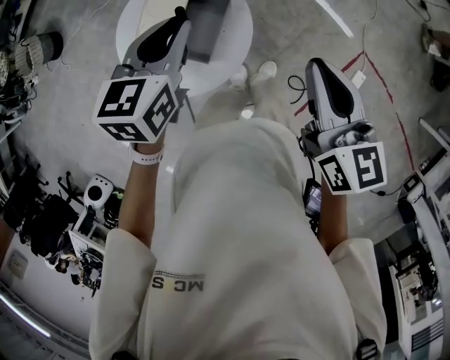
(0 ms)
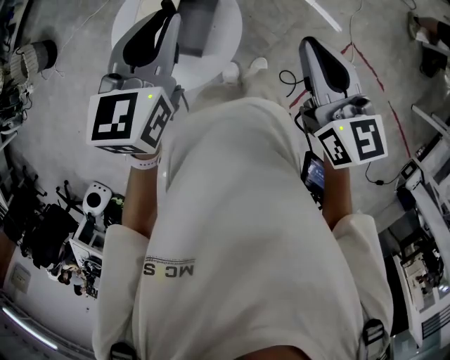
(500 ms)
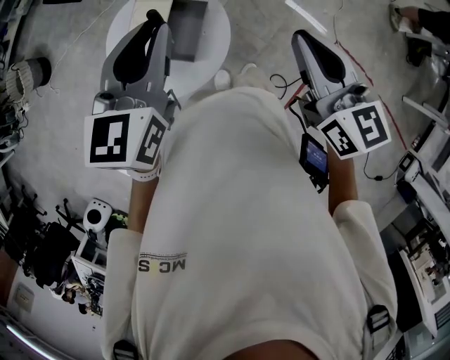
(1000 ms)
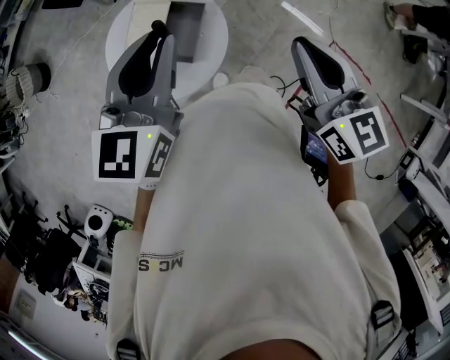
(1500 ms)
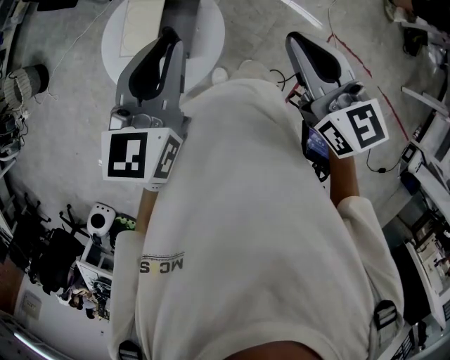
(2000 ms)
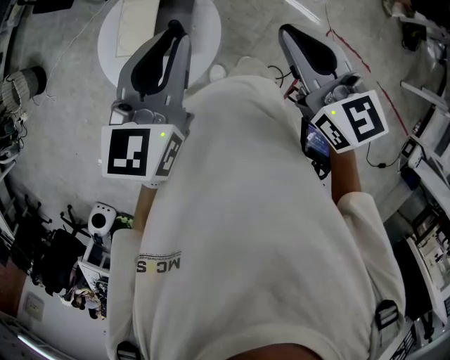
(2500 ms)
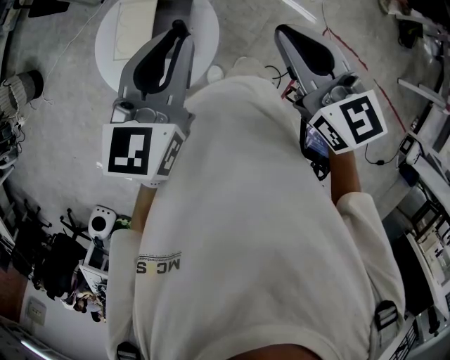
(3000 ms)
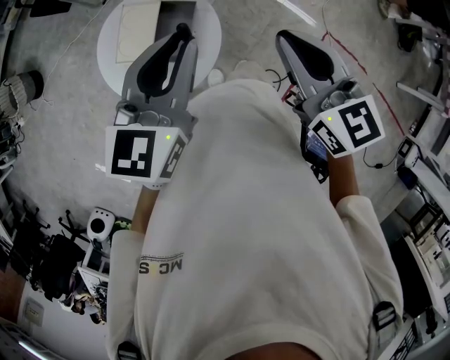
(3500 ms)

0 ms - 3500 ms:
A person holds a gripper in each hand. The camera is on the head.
0 ms - 2000 ms: The right gripper travels upward and backward by about 10 cm. Meanwhile the left gripper heads upward and backward, covering some 15 cm.
2000 ms - 3500 ms: The grippers stay close to where they were, moving slightly.

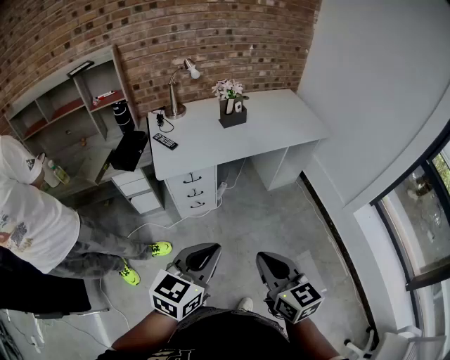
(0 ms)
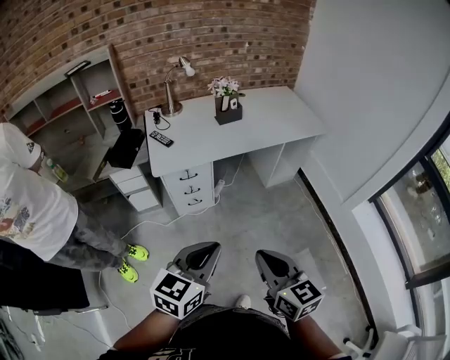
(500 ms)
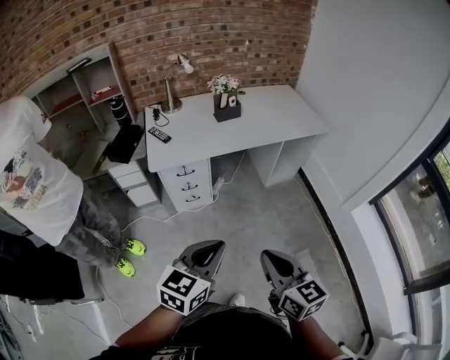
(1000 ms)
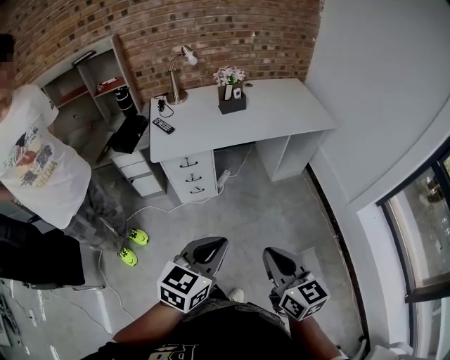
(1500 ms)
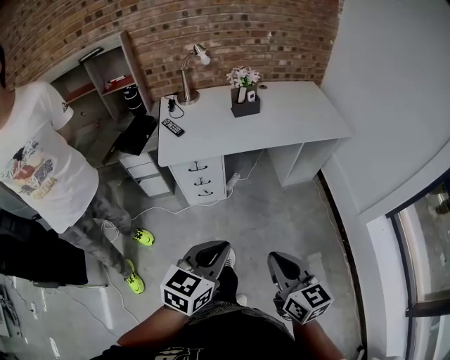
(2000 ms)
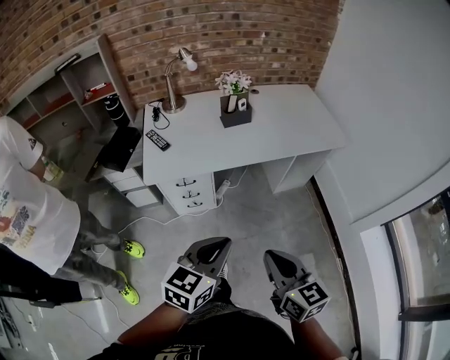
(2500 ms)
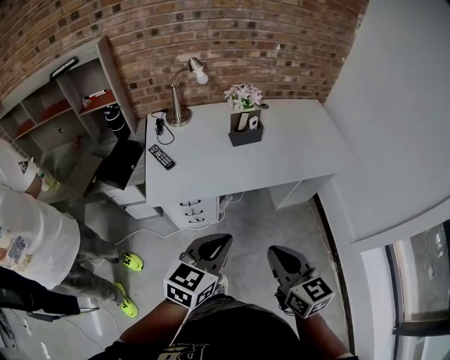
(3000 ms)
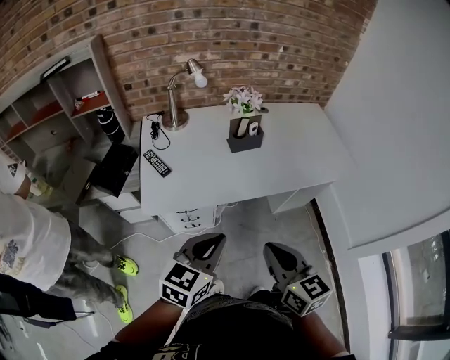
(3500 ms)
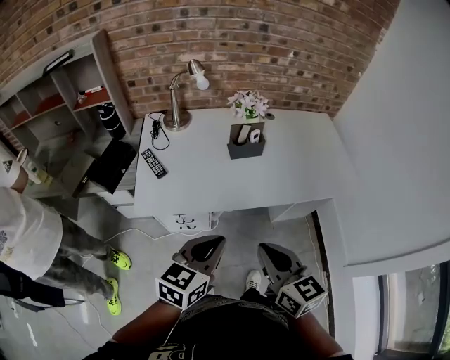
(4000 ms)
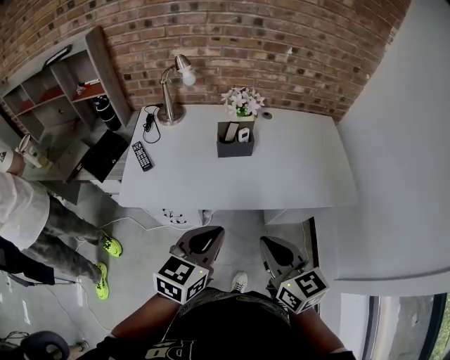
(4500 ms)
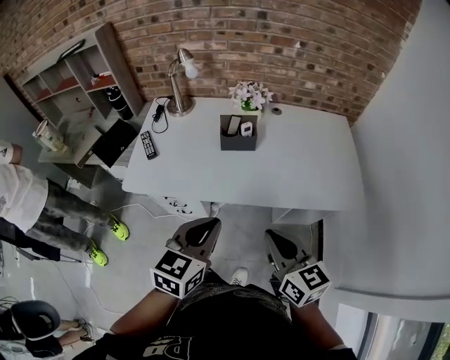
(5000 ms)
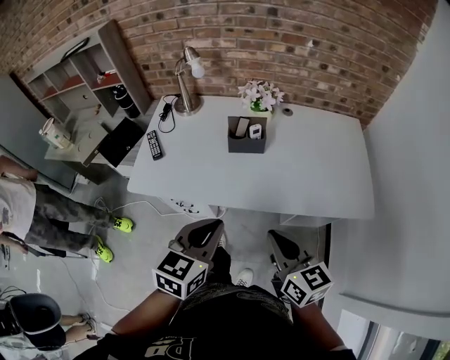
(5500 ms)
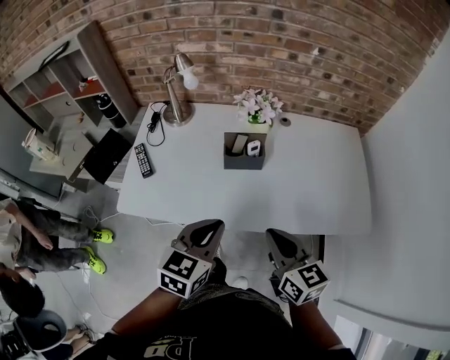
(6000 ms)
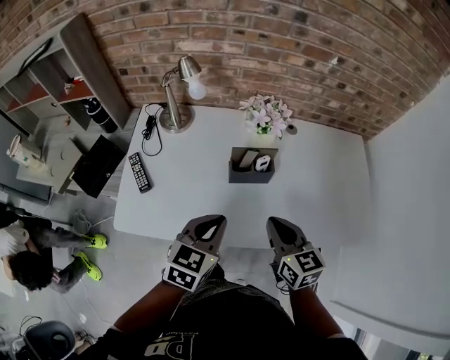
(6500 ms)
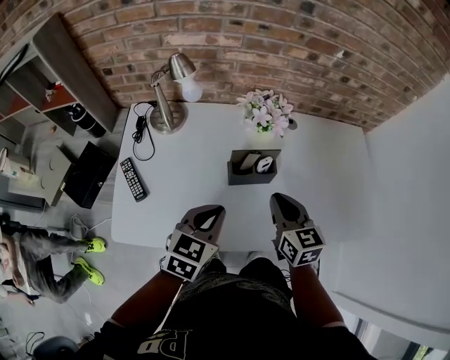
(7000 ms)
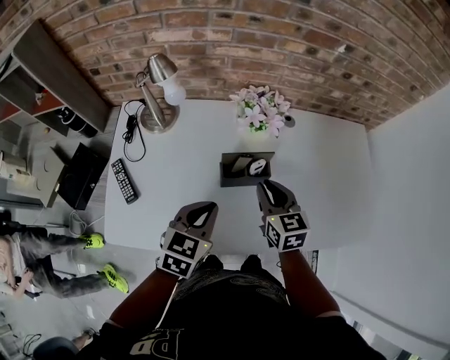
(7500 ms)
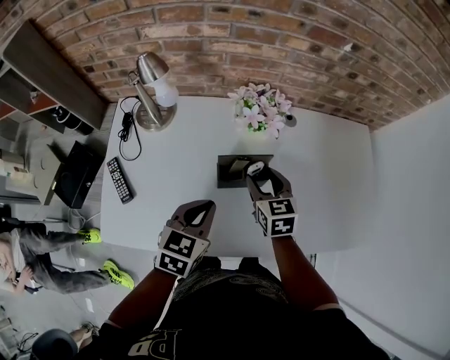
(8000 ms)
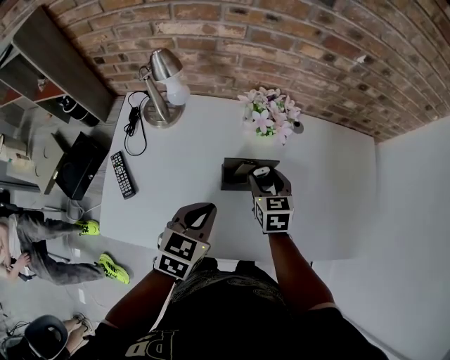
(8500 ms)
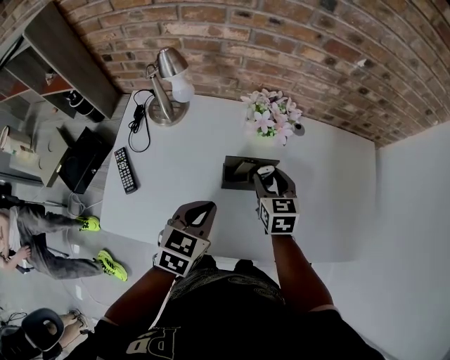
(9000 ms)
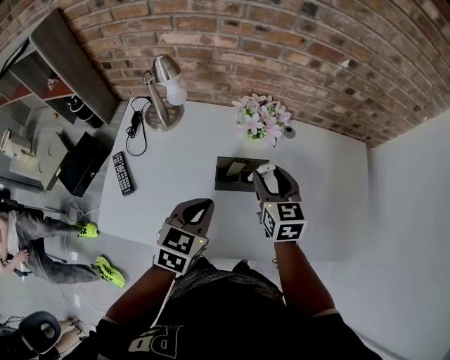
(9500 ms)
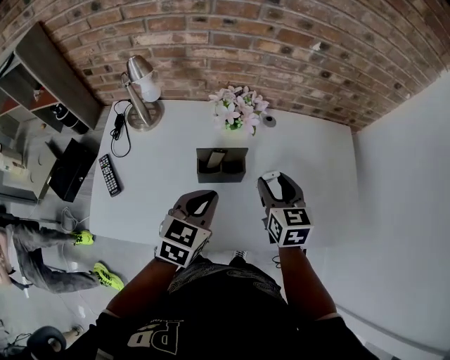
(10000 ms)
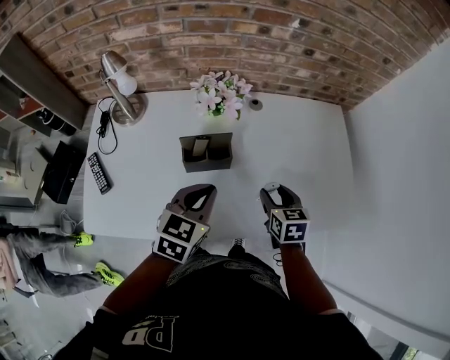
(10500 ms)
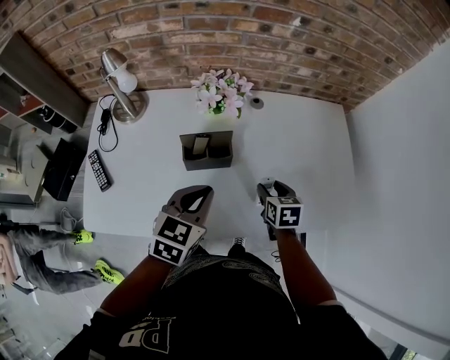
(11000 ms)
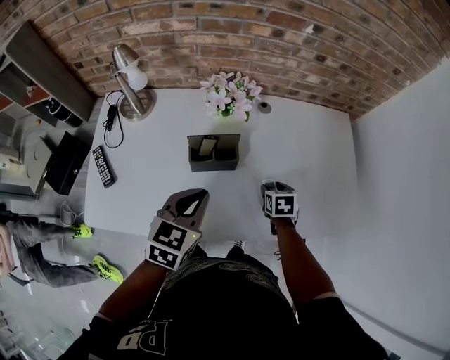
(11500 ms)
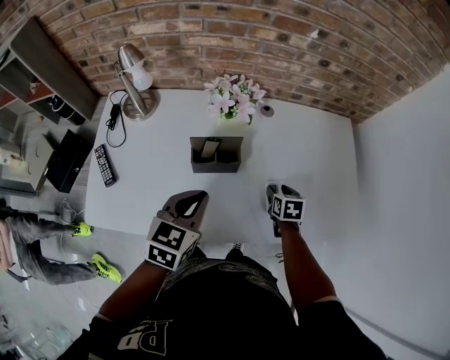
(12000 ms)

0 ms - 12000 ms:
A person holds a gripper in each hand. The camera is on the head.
0 ms - 2000 ms: The grippers both shift to the right by roughly 10 cm.
2000 ms - 4000 ms: The grippers both shift forward by about 35 cm.
4000 ms - 6000 ms: The grippers both shift forward and to the right by some 20 cm.
6000 ms - 8000 ms: The left gripper is displaced forward and downward by roughly 20 cm; the right gripper is displaced forward and downward by some 30 cm, turns by about 20 degrees, and opens.
8000 ms - 10000 ms: The right gripper travels to the right and upward by about 10 cm. The left gripper shifts about 5 cm to the right.
10000 ms - 12000 ms: The right gripper heads downward and to the right, covering approximately 20 cm, and changes its angle by approximately 30 degrees.

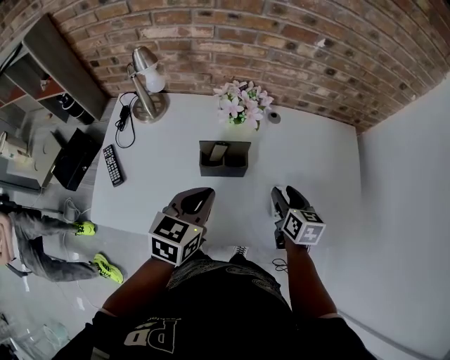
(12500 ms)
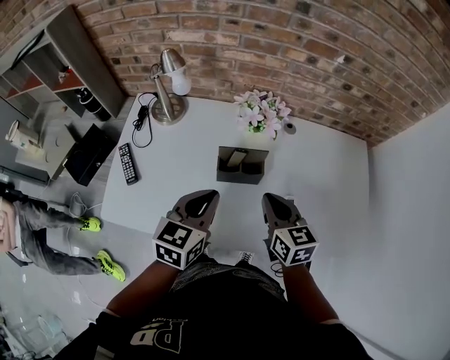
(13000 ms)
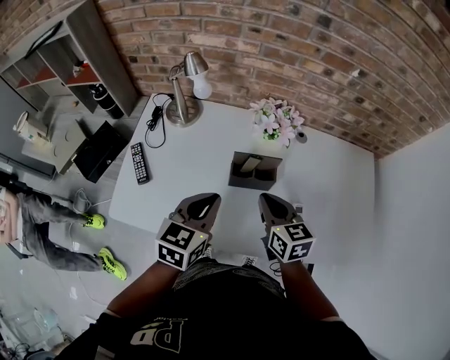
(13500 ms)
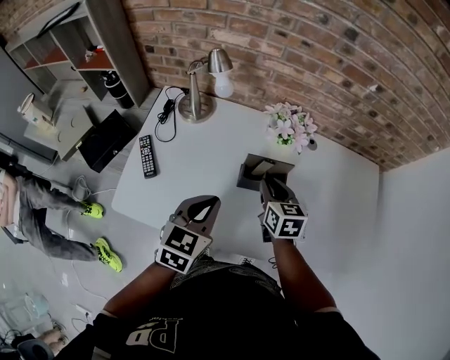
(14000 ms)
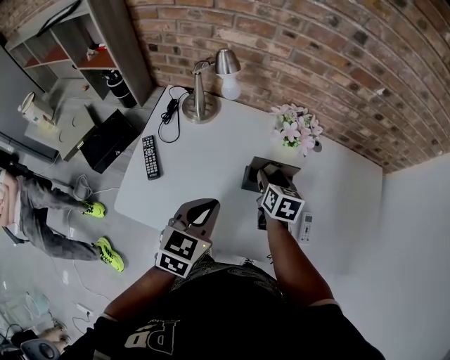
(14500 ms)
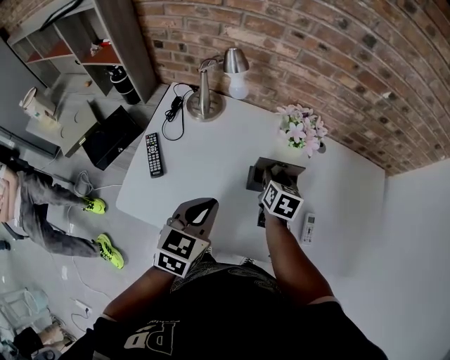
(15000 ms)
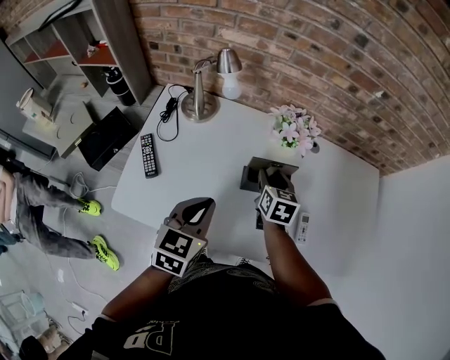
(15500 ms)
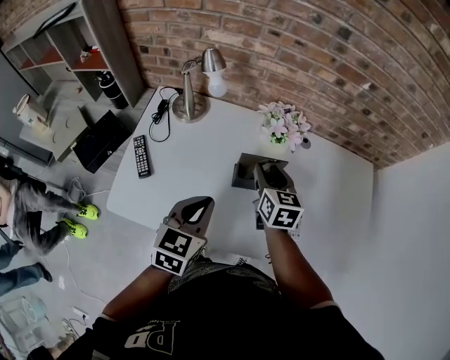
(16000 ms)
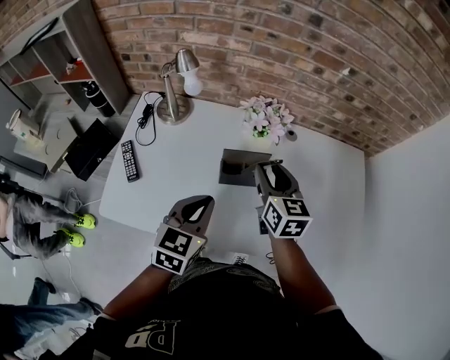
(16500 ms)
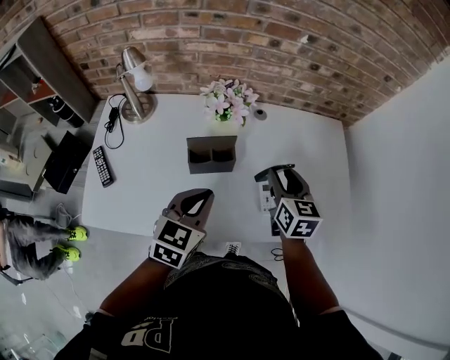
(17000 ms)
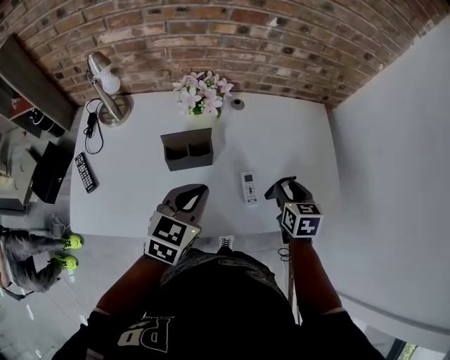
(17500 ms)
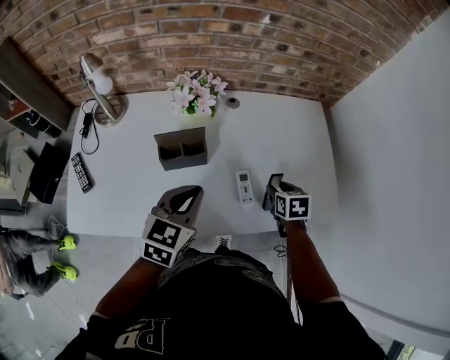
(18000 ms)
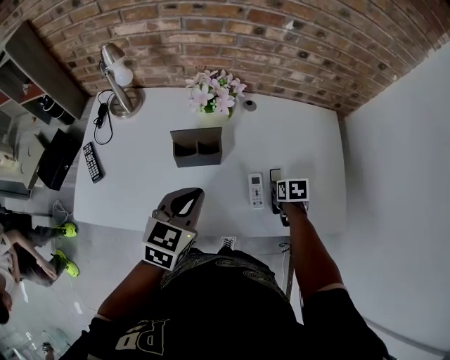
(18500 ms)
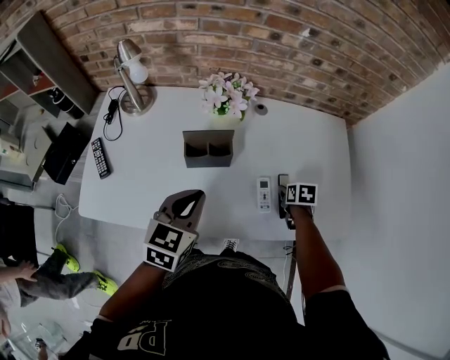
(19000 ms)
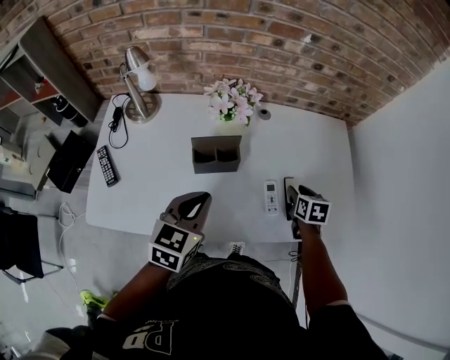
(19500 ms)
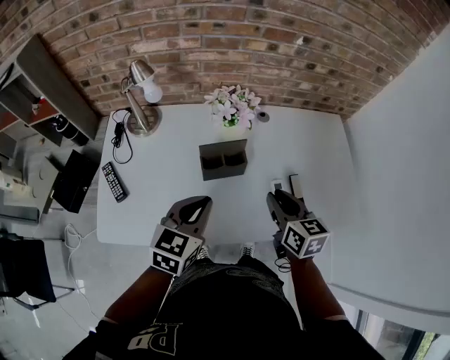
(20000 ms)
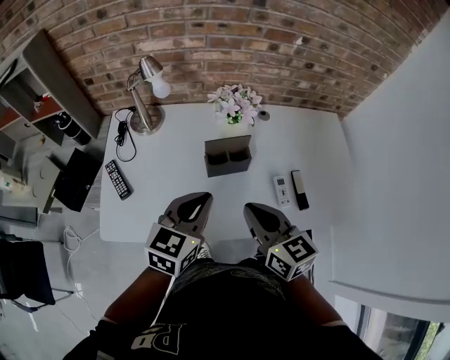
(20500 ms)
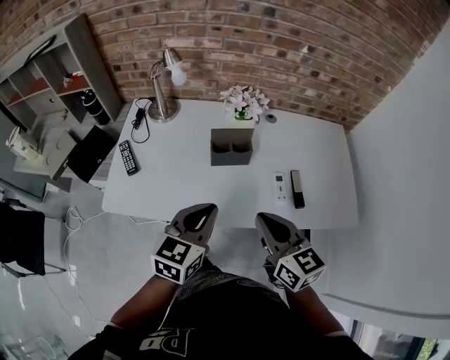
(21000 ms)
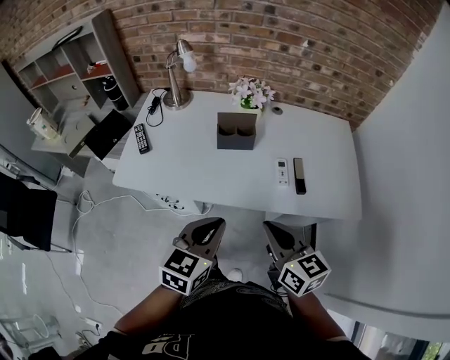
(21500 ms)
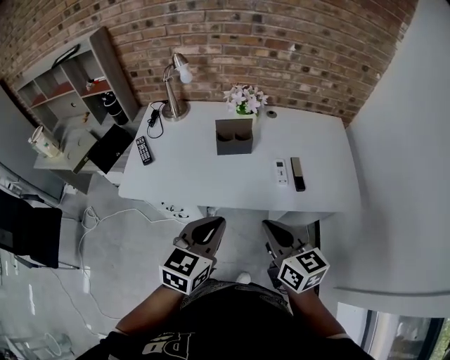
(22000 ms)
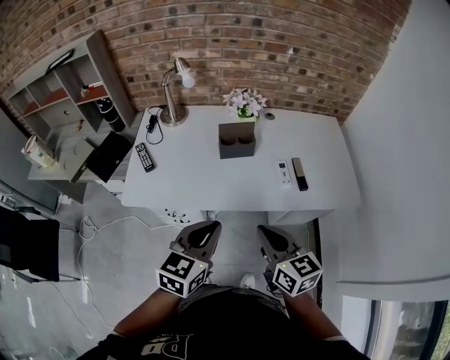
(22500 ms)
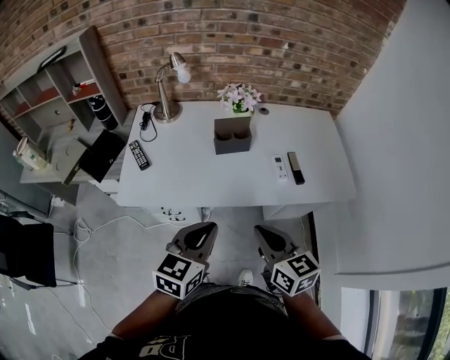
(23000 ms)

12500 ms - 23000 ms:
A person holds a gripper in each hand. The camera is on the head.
12500 ms - 14500 ms: The left gripper shifts approximately 10 cm to the left; the right gripper moves to the left and forward, some 20 cm, and closes, then reopens.
14500 ms - 16500 ms: The right gripper heads upward and to the right, covering roughly 15 cm, while the left gripper heads to the right, covering approximately 5 cm.
16500 ms - 19000 ms: The left gripper goes approximately 10 cm to the right, while the right gripper heads to the right and downward, covering some 35 cm, and tilts its fingers about 50 degrees downward.
19000 ms - 21000 ms: The left gripper shifts roughly 10 cm backward, while the right gripper moves upward, backward and to the left, approximately 40 cm, tips its fingers upward by some 50 degrees, and closes its fingers.
21000 ms - 23000 ms: The two grippers go roughly 15 cm backward.

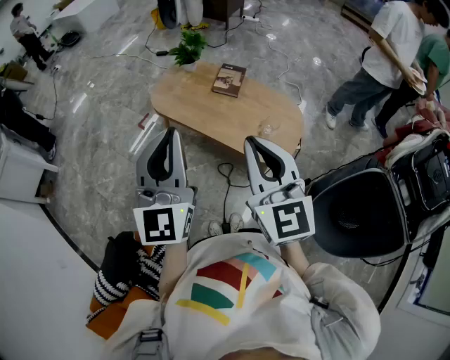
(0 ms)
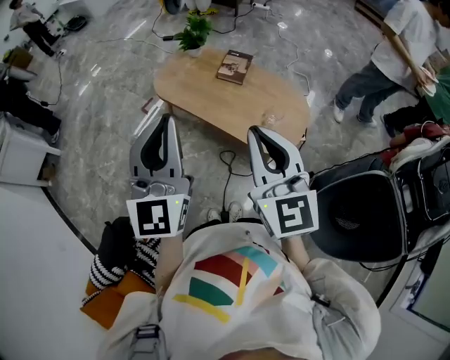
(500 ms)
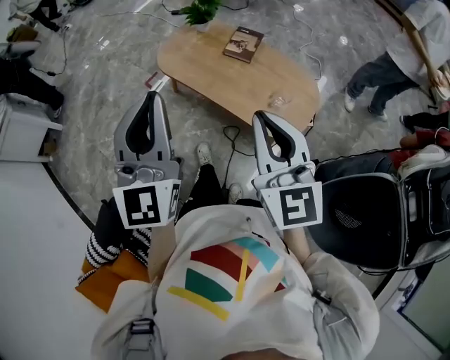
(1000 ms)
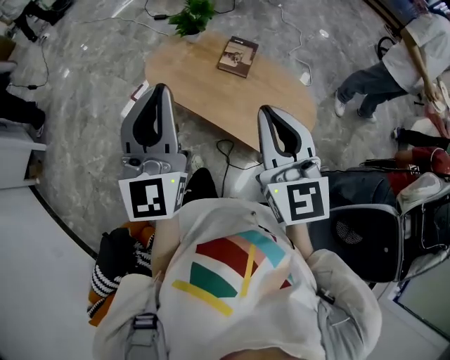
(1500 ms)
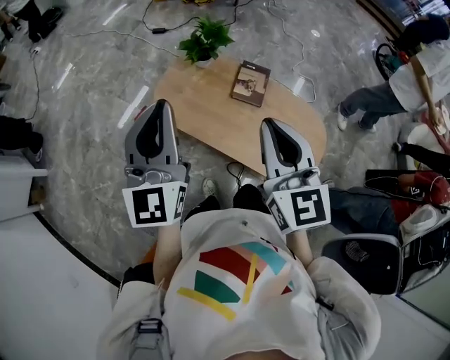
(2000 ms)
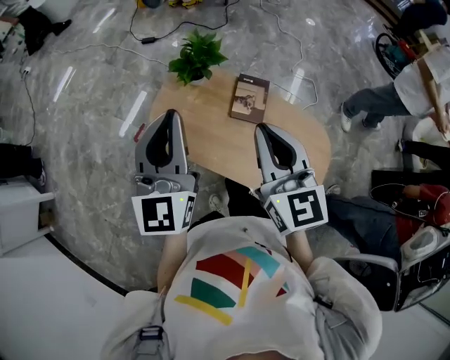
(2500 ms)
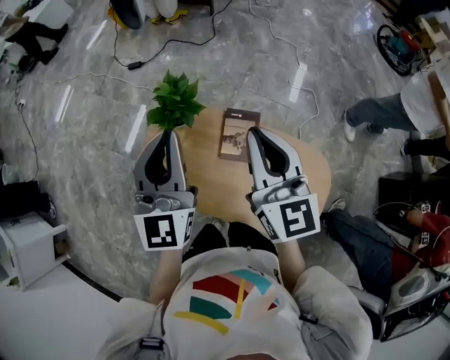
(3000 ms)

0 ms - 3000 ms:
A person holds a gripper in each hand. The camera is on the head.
0 ms - 1500 ms: The two grippers go roughly 15 cm forward.
1500 ms - 3000 ms: Both grippers are carried forward, some 50 cm.
